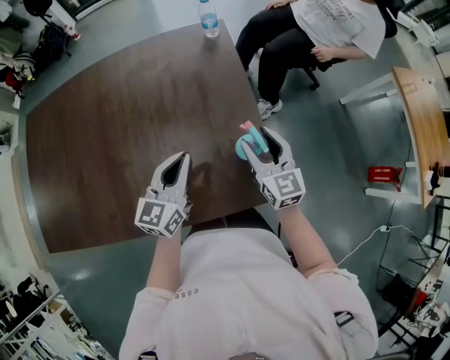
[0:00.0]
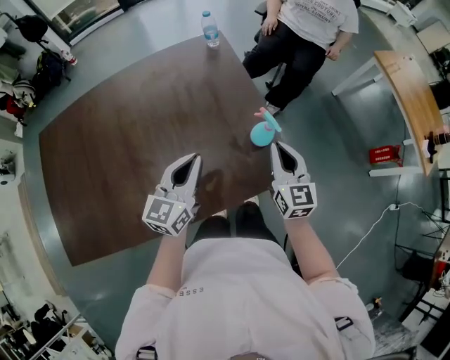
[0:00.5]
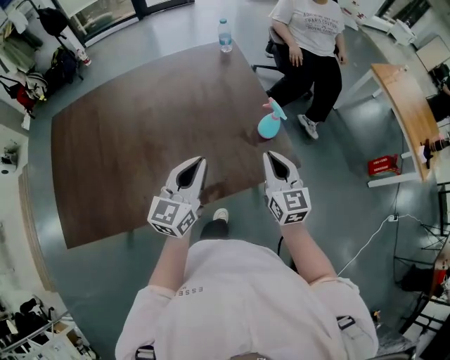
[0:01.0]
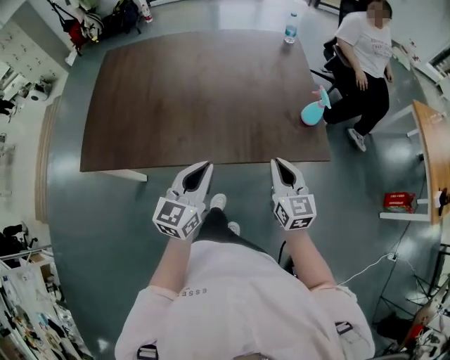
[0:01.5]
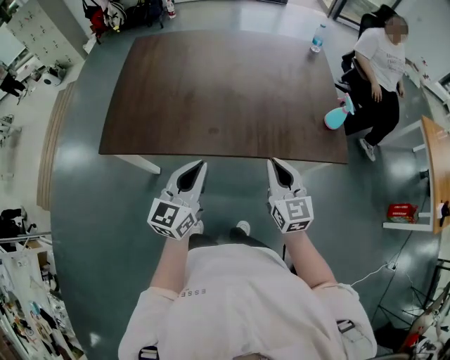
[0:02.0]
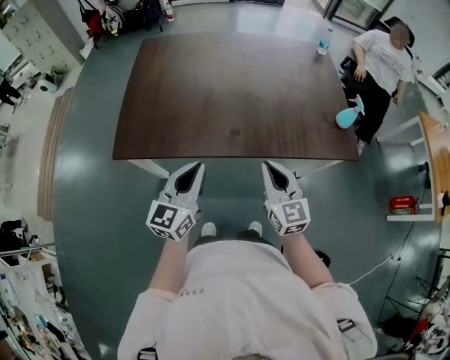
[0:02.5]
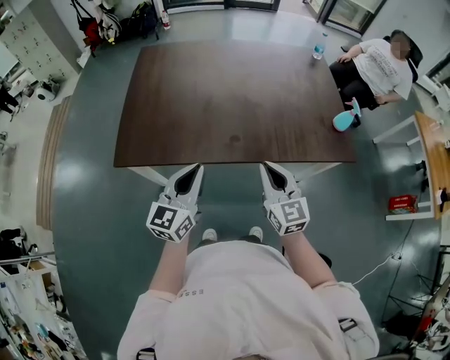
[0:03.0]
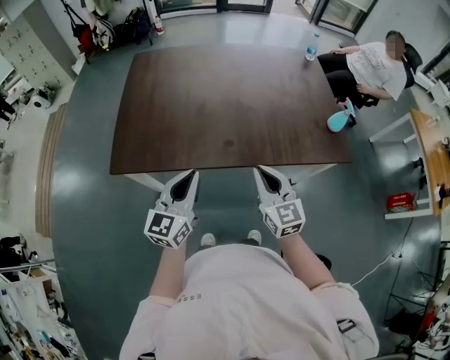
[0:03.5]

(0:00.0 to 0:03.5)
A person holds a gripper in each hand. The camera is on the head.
0:00.0 - 0:02.0: The two grippers travel together, approximately 40 cm. The right gripper closes.
0:02.0 - 0:03.5: The two grippers go approximately 10 cm to the left.

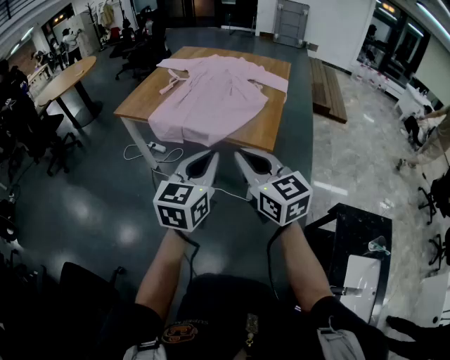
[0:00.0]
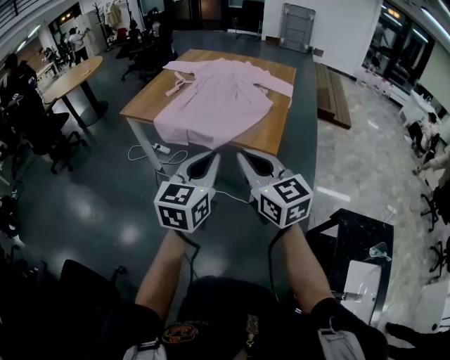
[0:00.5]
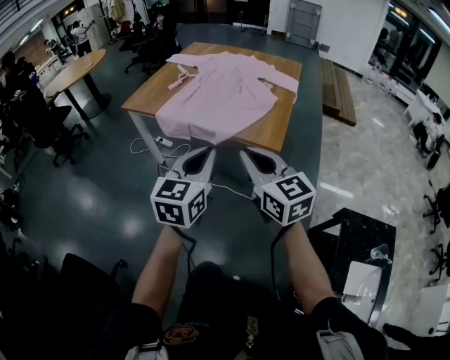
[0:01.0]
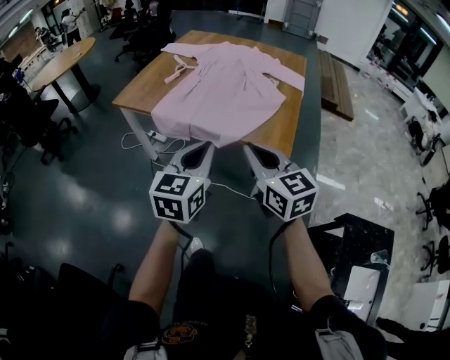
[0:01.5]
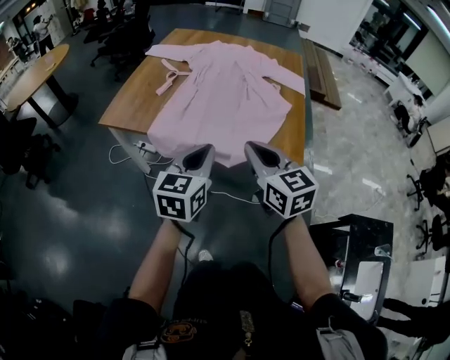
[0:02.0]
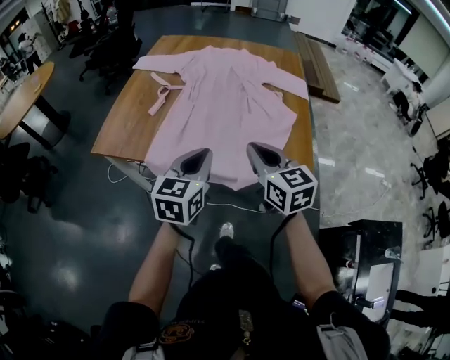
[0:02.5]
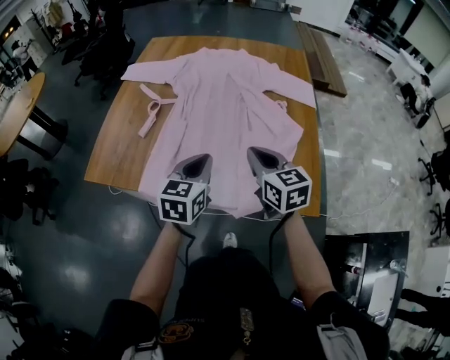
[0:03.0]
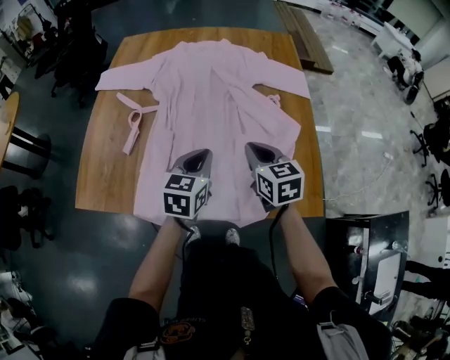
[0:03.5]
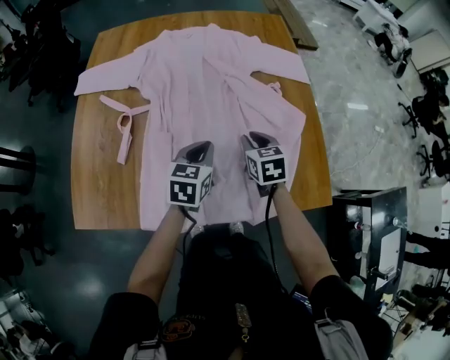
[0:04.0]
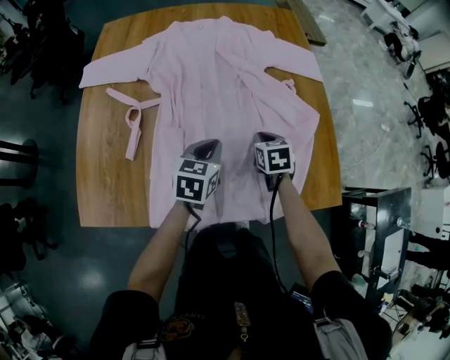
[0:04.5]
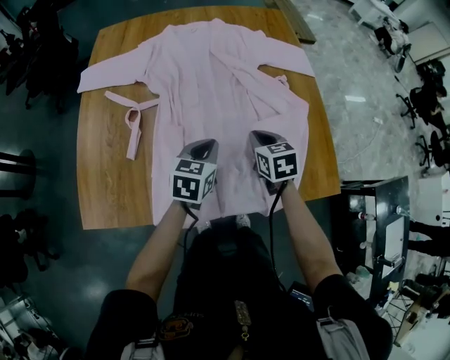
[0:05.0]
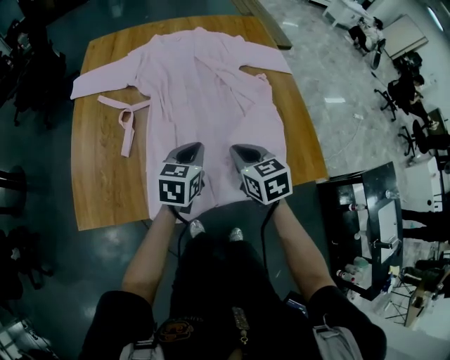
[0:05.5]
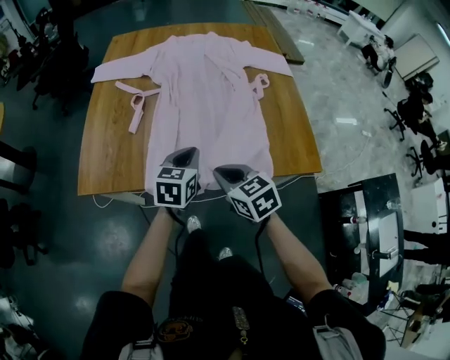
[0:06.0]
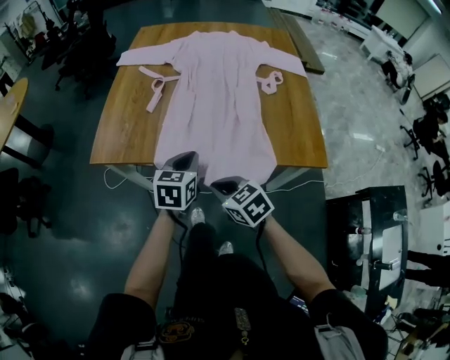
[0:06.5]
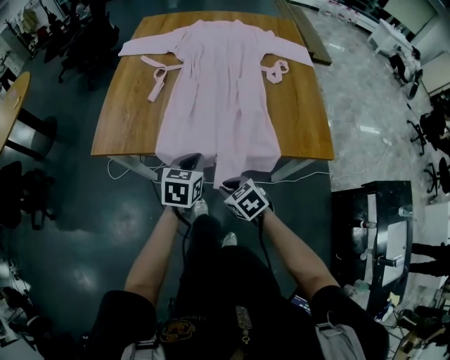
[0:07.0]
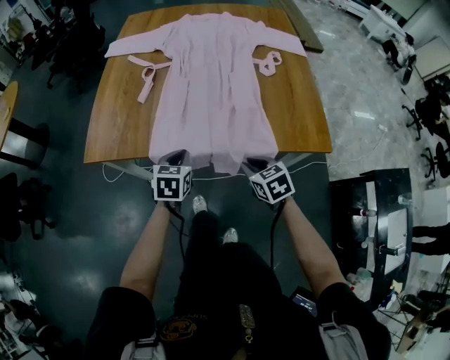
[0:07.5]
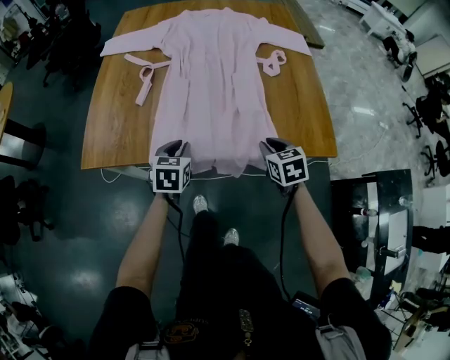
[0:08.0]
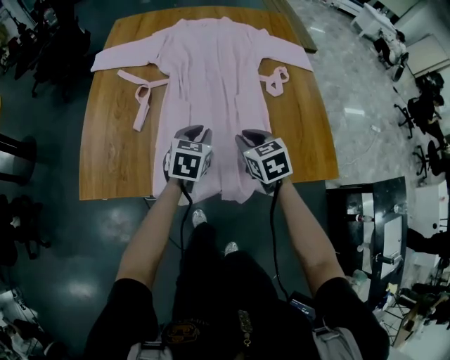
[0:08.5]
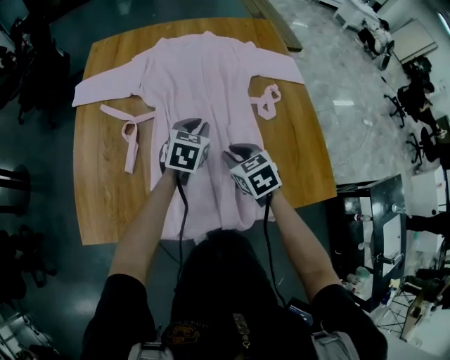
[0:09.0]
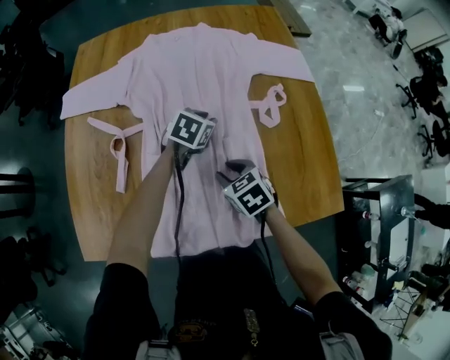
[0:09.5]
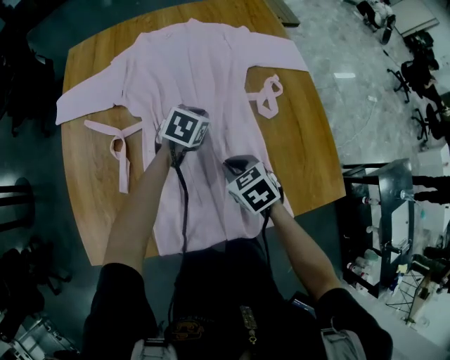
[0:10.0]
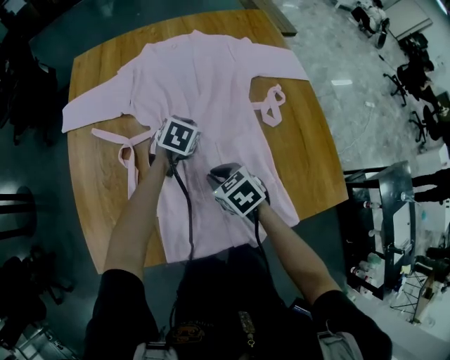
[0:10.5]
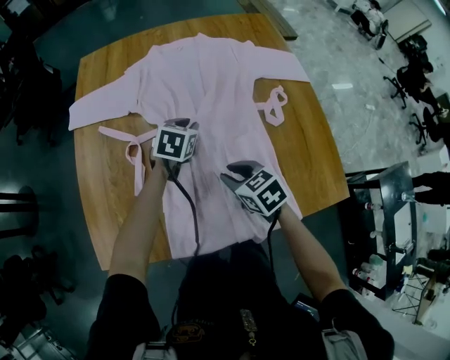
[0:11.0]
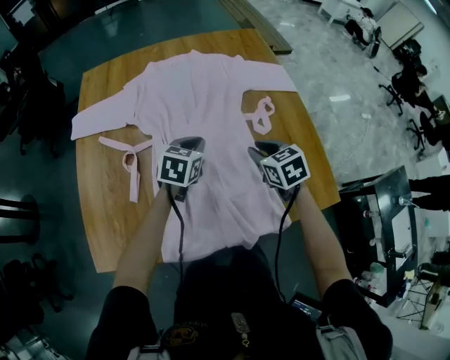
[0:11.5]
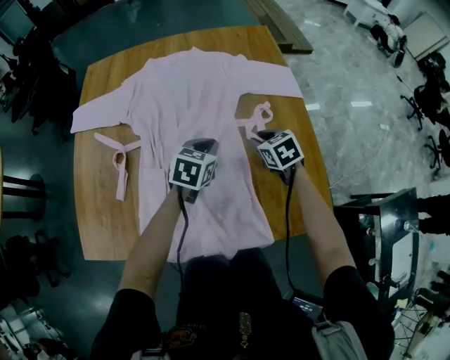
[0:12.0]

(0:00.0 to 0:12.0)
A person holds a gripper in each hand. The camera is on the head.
0:00.0 - 0:02.0: The right gripper shifts some 25 cm forward, while the left gripper moves forward and to the left, roughly 30 cm.
0:02.0 - 0:04.0: Both grippers move forward and downward, some 40 cm. The left gripper rotates about 30 degrees. The right gripper changes its angle by approximately 40 degrees.
0:04.0 - 0:06.0: The left gripper shifts approximately 15 cm backward. The right gripper goes about 25 cm backward, and turns by about 20 degrees.
0:06.0 - 0:08.0: The right gripper heads to the right and downward, covering some 15 cm; the left gripper travels downward and to the left by roughly 10 cm, and goes backward and returns, approximately 10 cm each way.
0:08.0 - 0:10.0: The right gripper travels forward and to the left by about 20 cm; the left gripper travels forward by approximately 35 cm, and rotates about 30 degrees.
0:10.0 - 0:12.0: The right gripper travels to the right and forward by approximately 20 cm. The left gripper heads to the right and upward, covering approximately 10 cm.

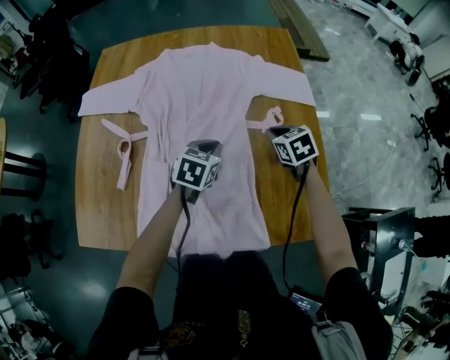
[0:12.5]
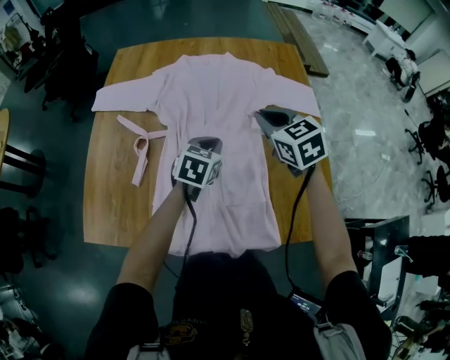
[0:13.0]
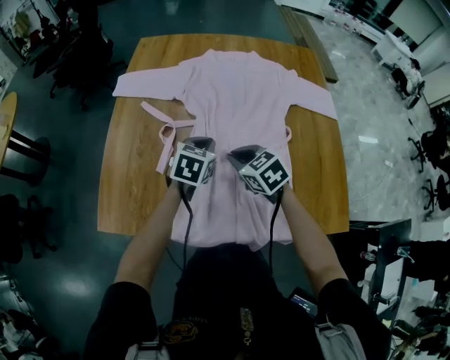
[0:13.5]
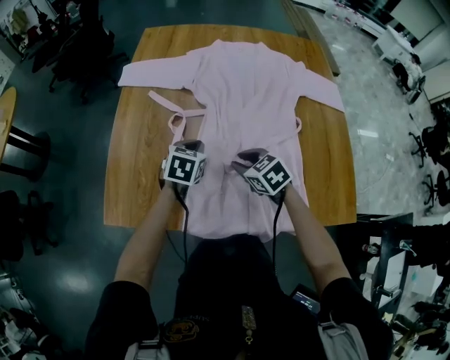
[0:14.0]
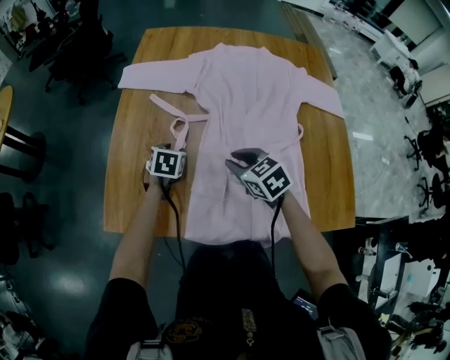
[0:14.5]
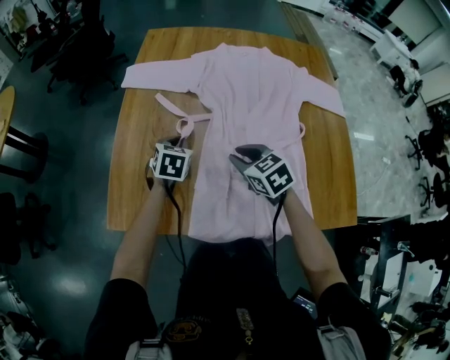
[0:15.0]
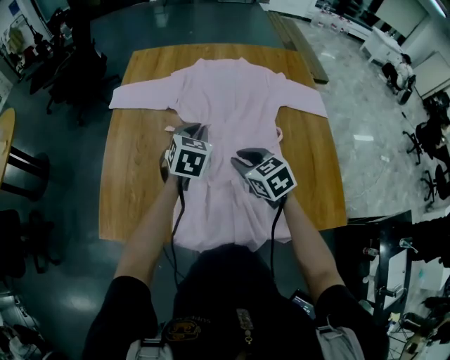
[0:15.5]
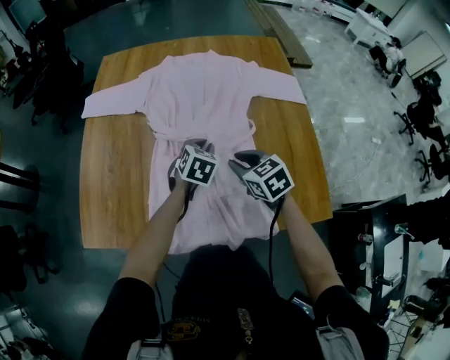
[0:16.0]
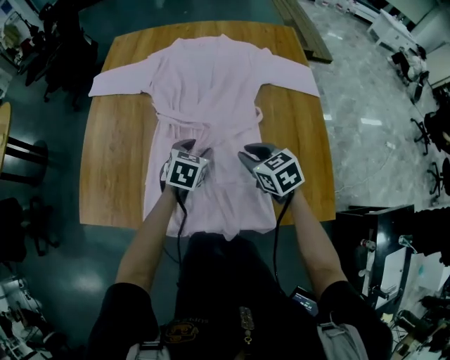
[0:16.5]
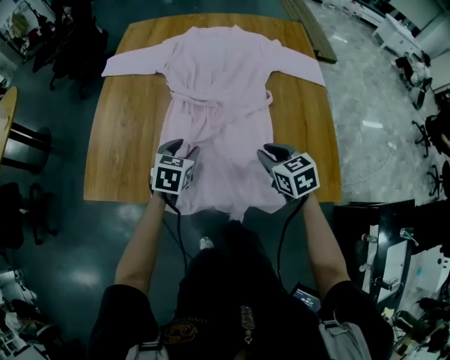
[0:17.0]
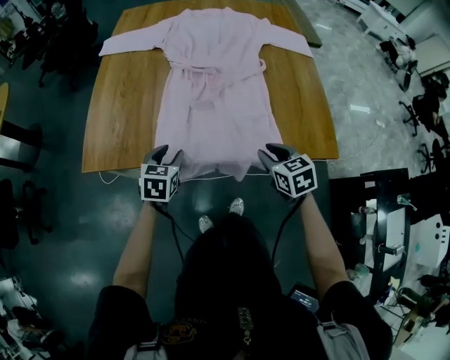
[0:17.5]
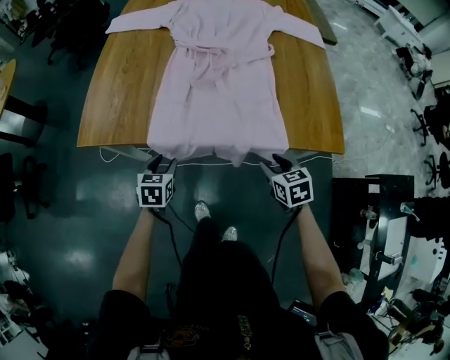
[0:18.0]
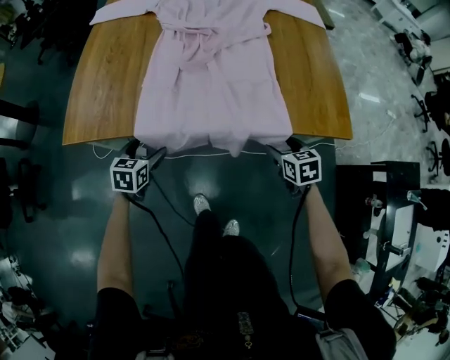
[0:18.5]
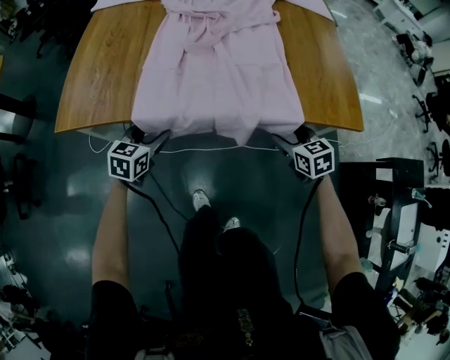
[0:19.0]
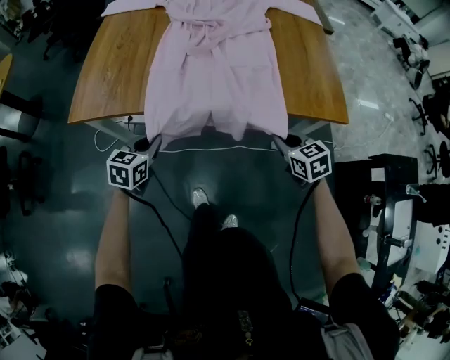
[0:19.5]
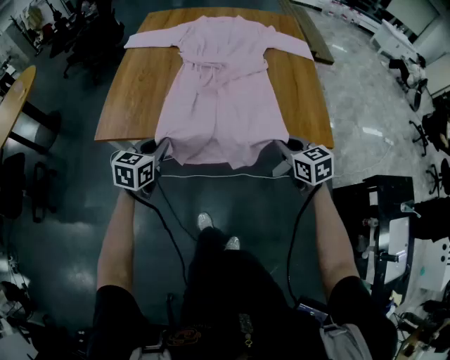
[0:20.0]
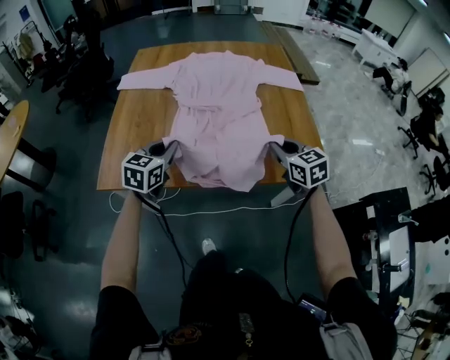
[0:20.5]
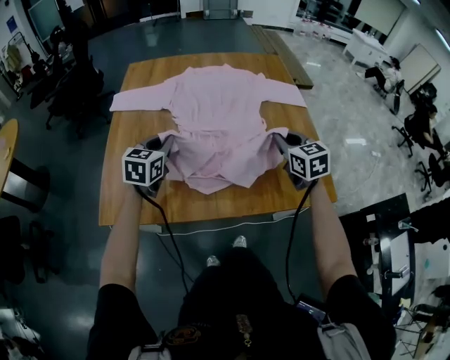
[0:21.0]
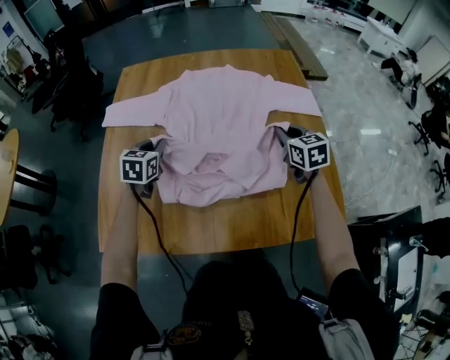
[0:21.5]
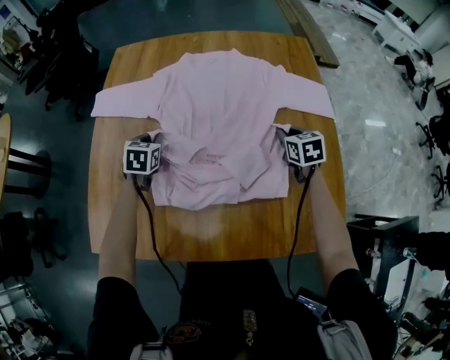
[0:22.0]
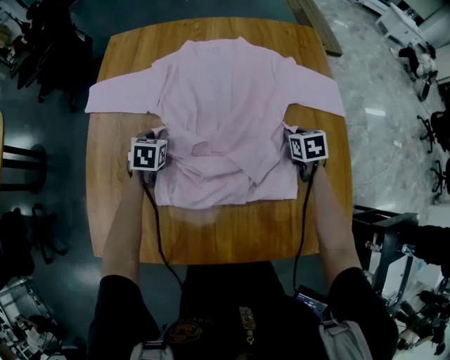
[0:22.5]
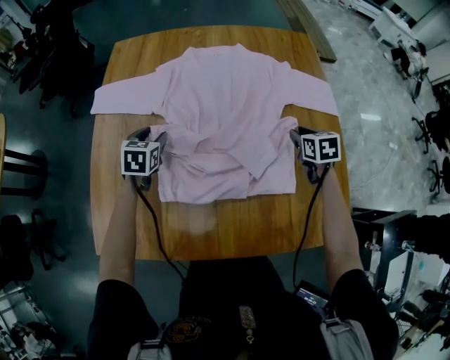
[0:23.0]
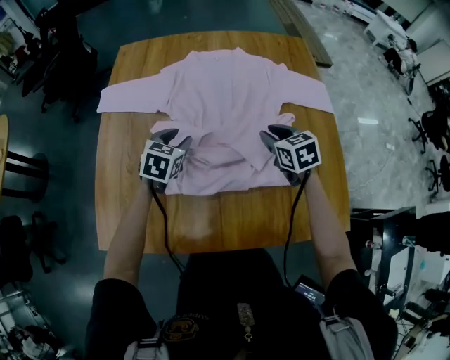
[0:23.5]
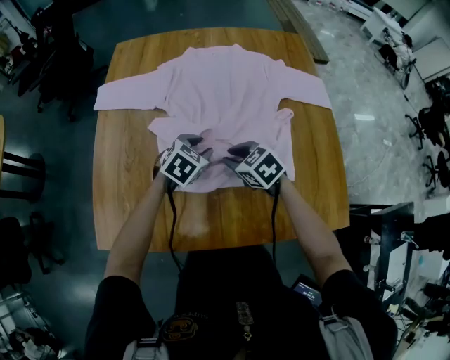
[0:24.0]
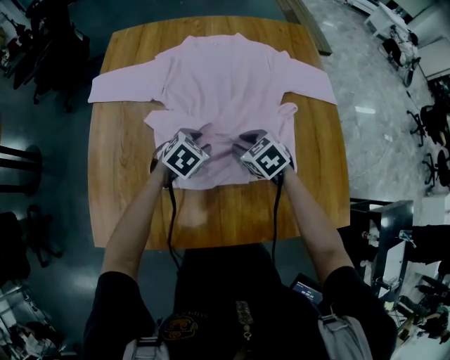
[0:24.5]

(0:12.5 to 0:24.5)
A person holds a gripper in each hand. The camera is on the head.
0:12.5 - 0:14.5: Both grippers travel together to the left, about 35 cm. The left gripper turns by approximately 20 degrees, and opens; the right gripper turns by roughly 20 degrees.
0:14.5 - 0:16.5: Both grippers travel together to the right, some 25 cm. The left gripper closes and opens again.
0:16.5 - 0:18.5: The left gripper moves backward, to the left and downward, about 35 cm. Meanwhile the right gripper heads backward and downward, covering about 30 cm, swivels about 20 degrees, and opens.
0:18.5 - 0:20.5: The two grippers go roughly 25 cm upward. The left gripper turns by about 20 degrees, and closes; the right gripper swivels approximately 30 degrees, and closes up.
0:20.5 - 0:22.5: Both grippers move forward and downward, some 40 cm. The left gripper swivels approximately 30 degrees. Meanwhile the right gripper changes its angle by approximately 30 degrees.
0:22.5 - 0:24.5: The right gripper is displaced to the left and backward by approximately 20 cm, turns by about 30 degrees, and opens. The left gripper goes some 15 cm to the right and backward, swivels some 40 degrees, and opens up.
